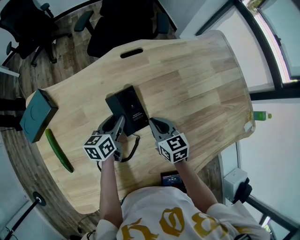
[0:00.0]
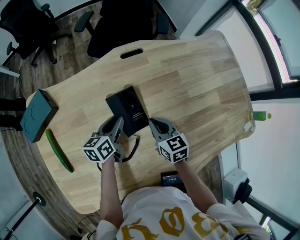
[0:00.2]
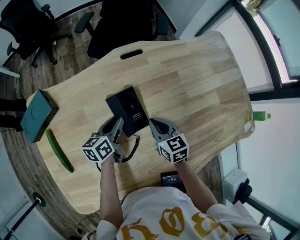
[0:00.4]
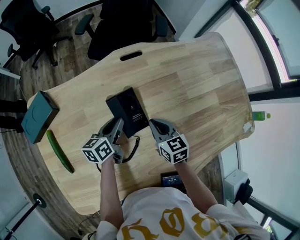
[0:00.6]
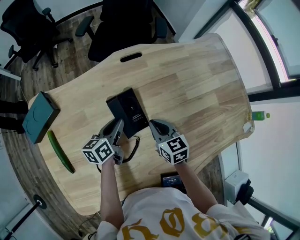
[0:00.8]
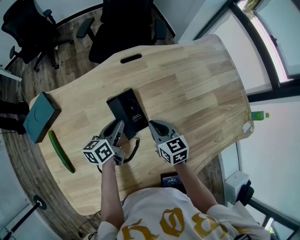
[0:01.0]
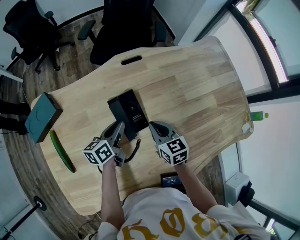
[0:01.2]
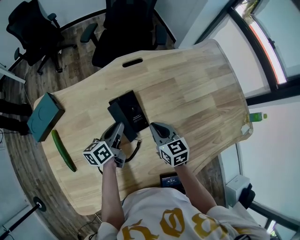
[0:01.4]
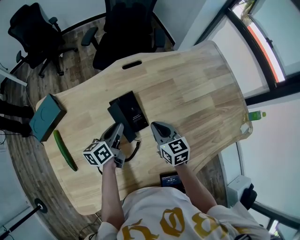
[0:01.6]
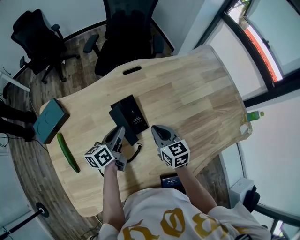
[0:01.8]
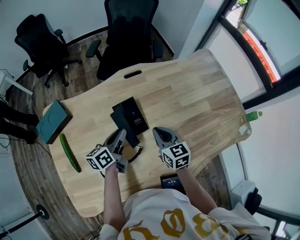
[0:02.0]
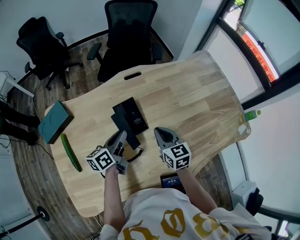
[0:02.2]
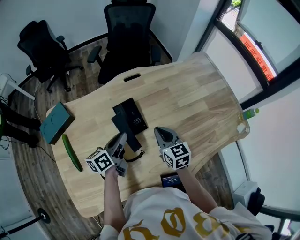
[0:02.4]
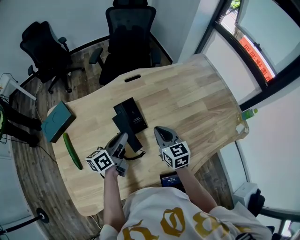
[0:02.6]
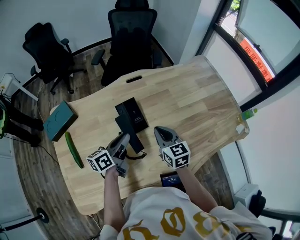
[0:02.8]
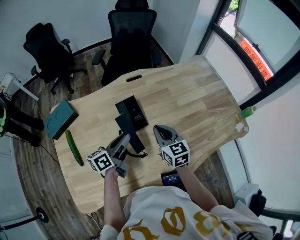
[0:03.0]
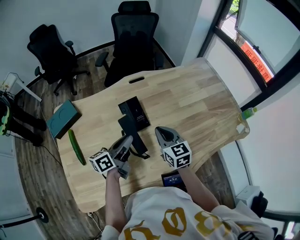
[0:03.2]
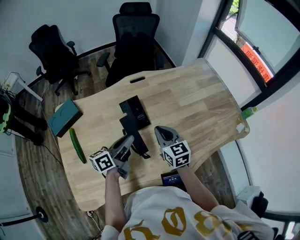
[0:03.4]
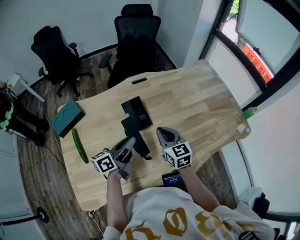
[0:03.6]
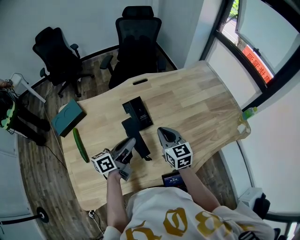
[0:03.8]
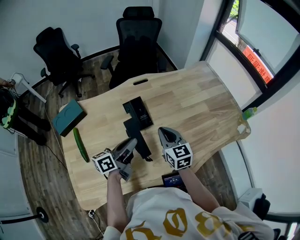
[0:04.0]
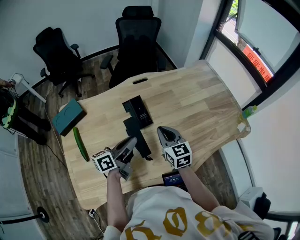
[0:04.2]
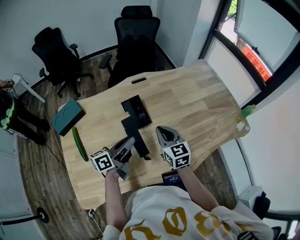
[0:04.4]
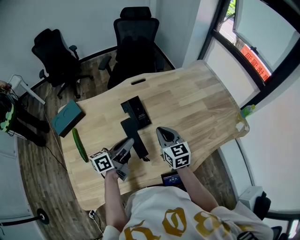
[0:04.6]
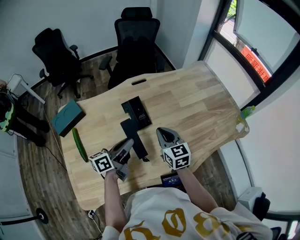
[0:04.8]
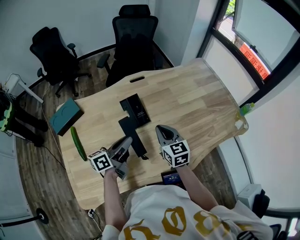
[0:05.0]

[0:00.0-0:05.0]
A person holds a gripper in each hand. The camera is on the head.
0:00.0 to 0:01.6: The left gripper moves some 5 cm.
0:01.6 to 0:03.4: The left gripper heads backward and upward, covering about 15 cm, and changes its angle by roughly 20 degrees. Meanwhile the right gripper travels upward and backward by roughly 10 cm.
0:03.4 to 0:05.0: The grippers stay close to where they were, moving slightly.

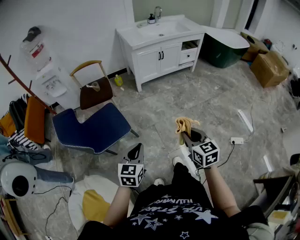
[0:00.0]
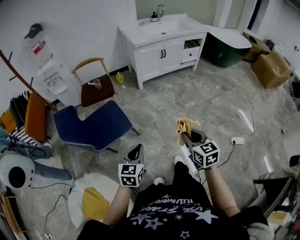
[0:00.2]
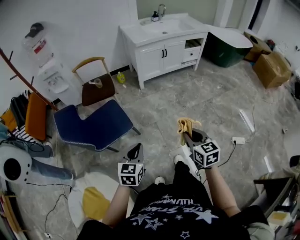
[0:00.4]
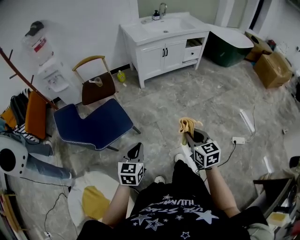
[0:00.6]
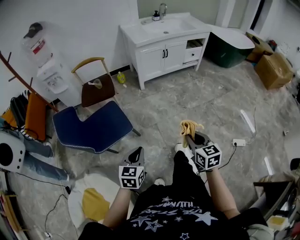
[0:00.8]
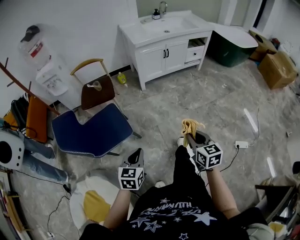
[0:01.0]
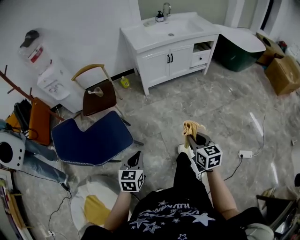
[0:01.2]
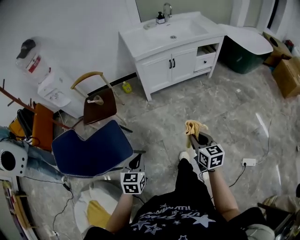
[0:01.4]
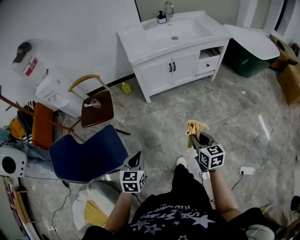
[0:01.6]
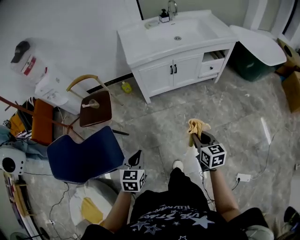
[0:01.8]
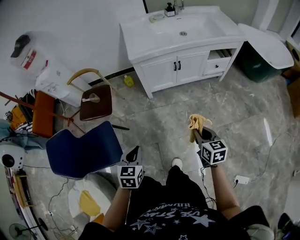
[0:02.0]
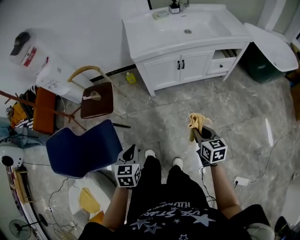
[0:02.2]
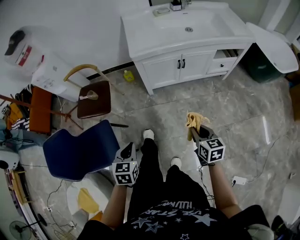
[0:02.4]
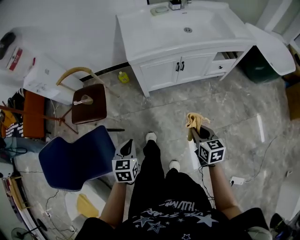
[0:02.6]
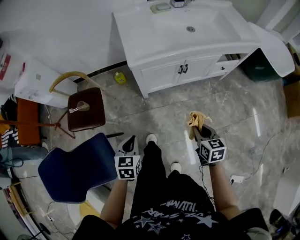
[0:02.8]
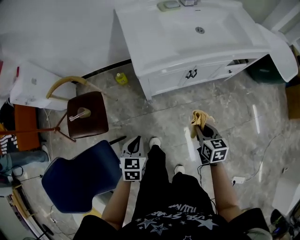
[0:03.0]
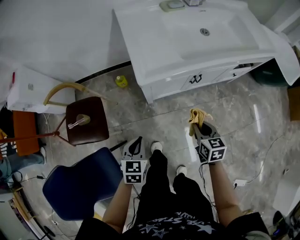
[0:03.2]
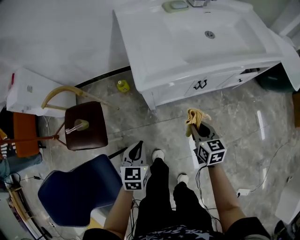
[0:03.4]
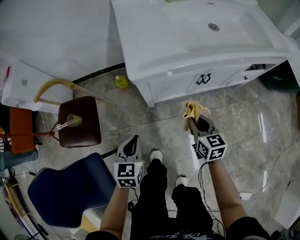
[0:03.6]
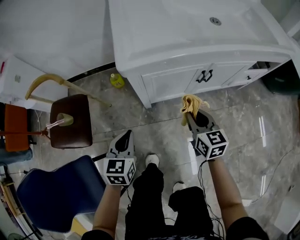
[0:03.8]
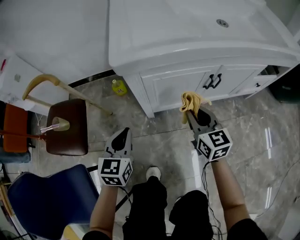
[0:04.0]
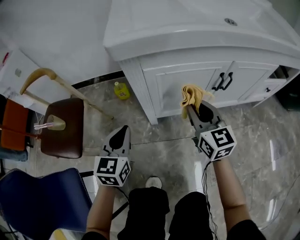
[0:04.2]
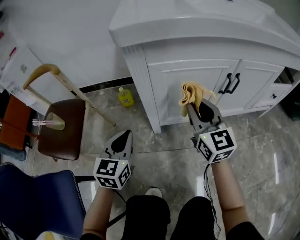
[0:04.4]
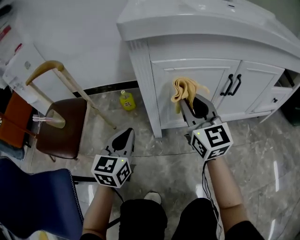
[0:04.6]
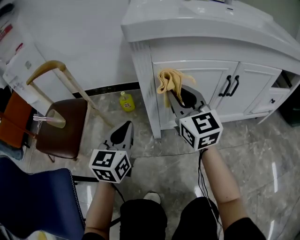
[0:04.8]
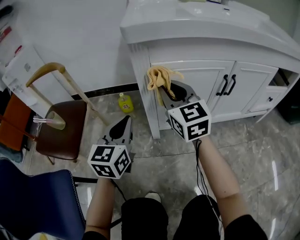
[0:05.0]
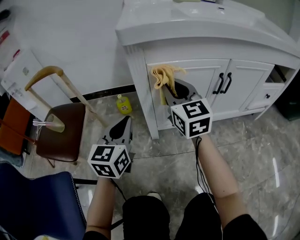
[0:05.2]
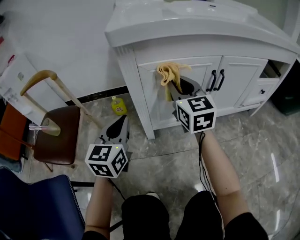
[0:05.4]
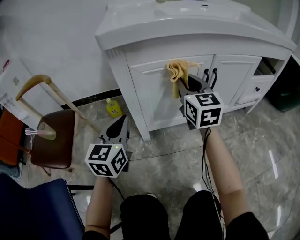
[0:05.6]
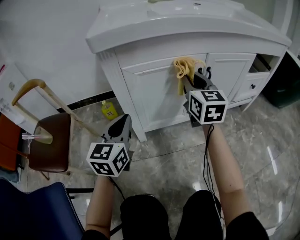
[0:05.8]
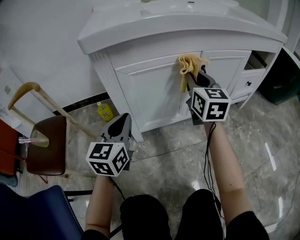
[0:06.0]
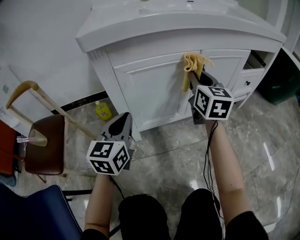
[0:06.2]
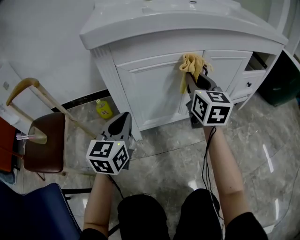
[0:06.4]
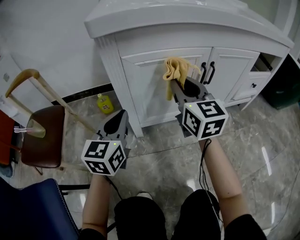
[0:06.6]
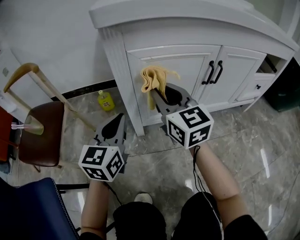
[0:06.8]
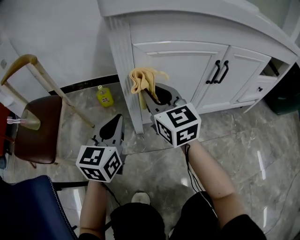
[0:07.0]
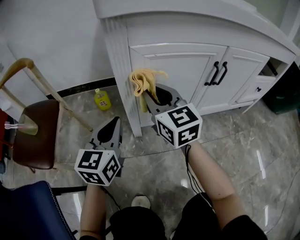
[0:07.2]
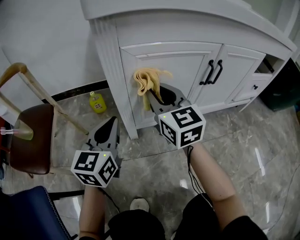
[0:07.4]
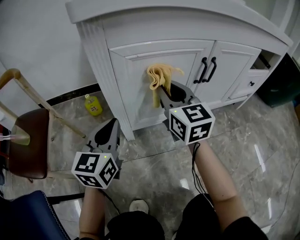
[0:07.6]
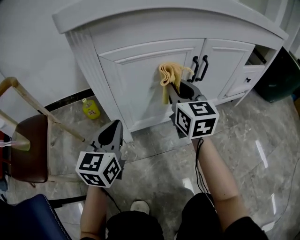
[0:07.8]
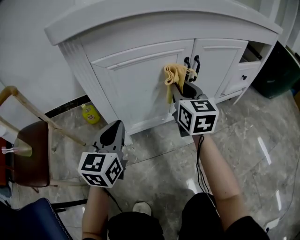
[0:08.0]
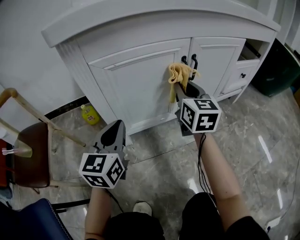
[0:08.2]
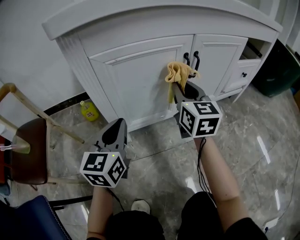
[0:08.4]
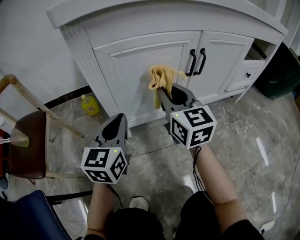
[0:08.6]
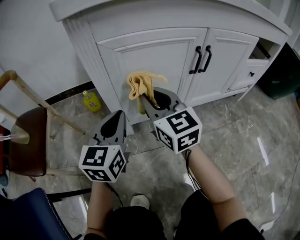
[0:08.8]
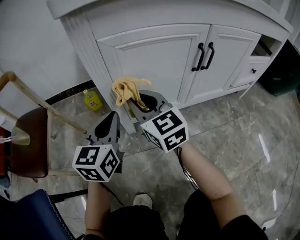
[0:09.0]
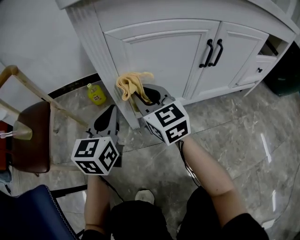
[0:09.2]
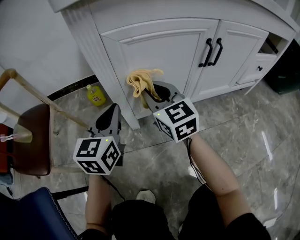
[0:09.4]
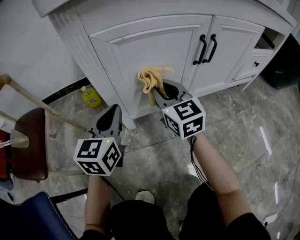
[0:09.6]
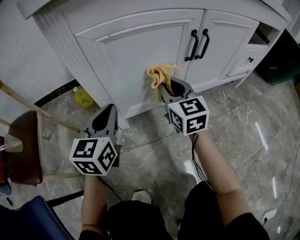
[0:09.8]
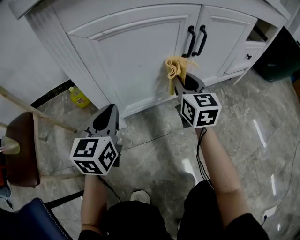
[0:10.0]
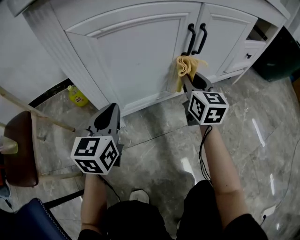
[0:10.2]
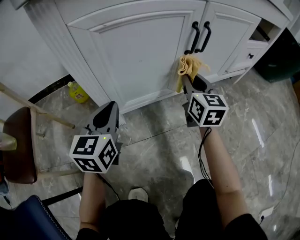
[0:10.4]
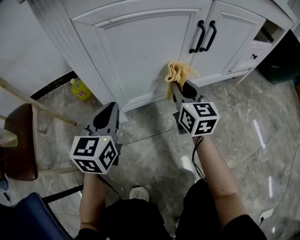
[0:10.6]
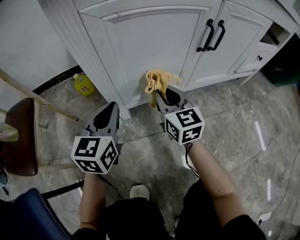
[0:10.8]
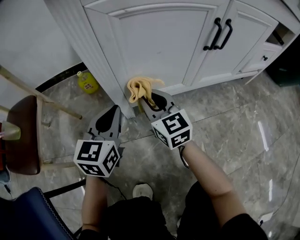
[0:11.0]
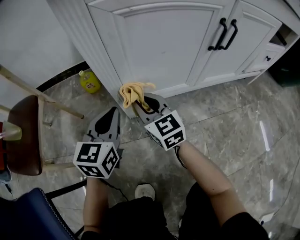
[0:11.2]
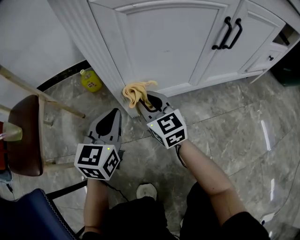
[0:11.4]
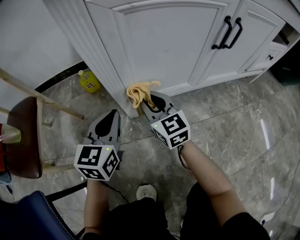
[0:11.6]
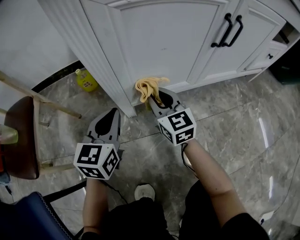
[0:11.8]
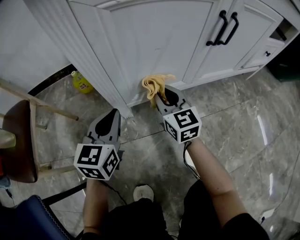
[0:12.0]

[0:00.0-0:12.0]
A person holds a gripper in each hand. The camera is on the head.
0:00.0 to 0:01.6: The right gripper moves forward and to the right, approximately 40 cm, while the left gripper shifts approximately 30 cm forward.
0:01.6 to 0:03.0: Both grippers move forward, approximately 40 cm.
0:03.0 to 0:04.4: The right gripper moves forward and downward, approximately 30 cm, and points its fingers approximately 40 degrees further upward. The left gripper is displaced downward and forward by roughly 30 cm, and changes its angle by roughly 20 degrees.
0:04.4 to 0:06.0: The left gripper moves to the right and upward, roughly 10 cm. The right gripper shifts roughly 15 cm to the right and forward, and rotates approximately 20 degrees.
0:06.0 to 0:07.6: The left gripper travels downward by roughly 5 cm. Meanwhile the right gripper heads to the left and downward, covering some 15 cm.
0:07.6 to 0:09.0: The right gripper heads to the left, covering about 10 cm.
0:09.0 to 0:10.4: The right gripper is displaced to the right by approximately 25 cm, and turns by approximately 30 degrees; the left gripper is displaced downward by approximately 5 cm.
0:10.4 to 0:12.0: The right gripper goes about 20 cm to the left and downward, and swivels some 20 degrees. The left gripper shifts about 5 cm downward.

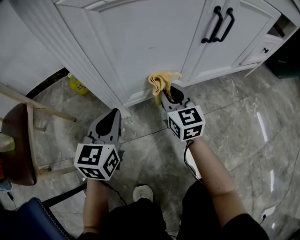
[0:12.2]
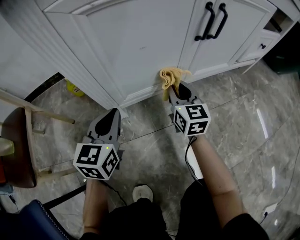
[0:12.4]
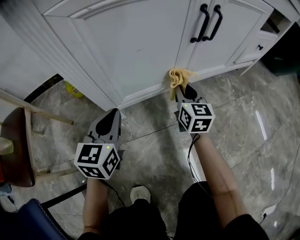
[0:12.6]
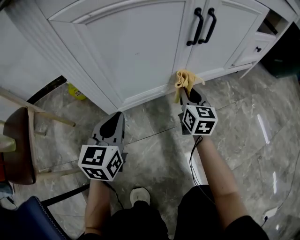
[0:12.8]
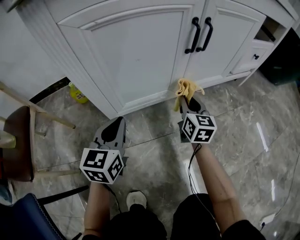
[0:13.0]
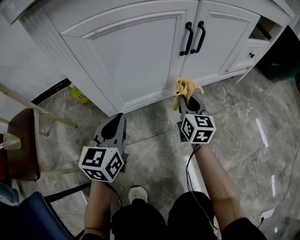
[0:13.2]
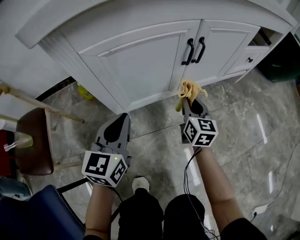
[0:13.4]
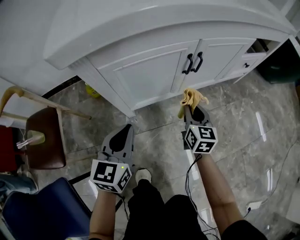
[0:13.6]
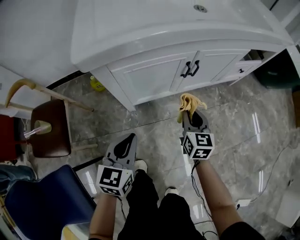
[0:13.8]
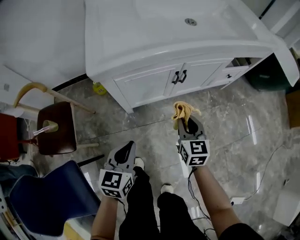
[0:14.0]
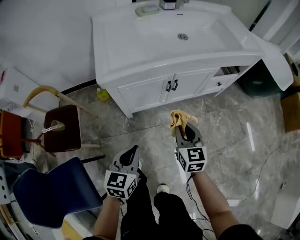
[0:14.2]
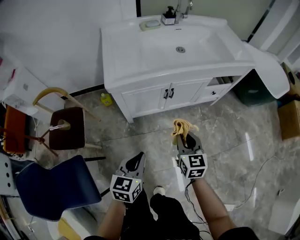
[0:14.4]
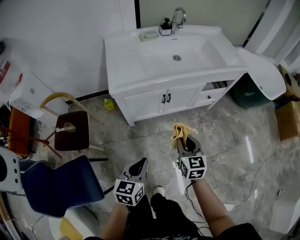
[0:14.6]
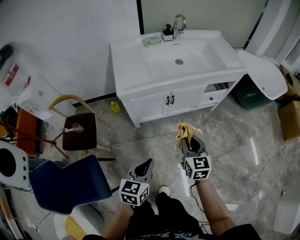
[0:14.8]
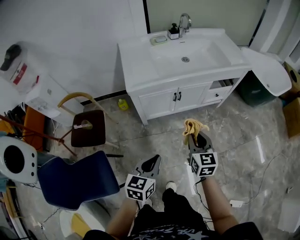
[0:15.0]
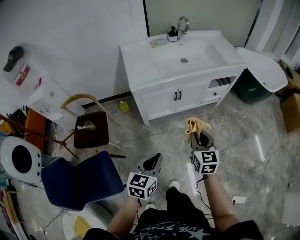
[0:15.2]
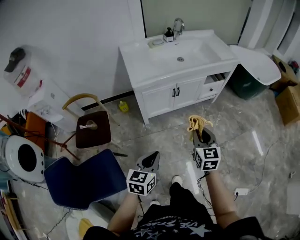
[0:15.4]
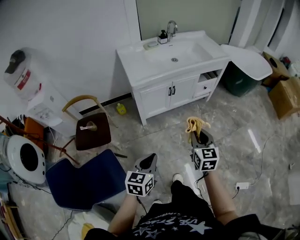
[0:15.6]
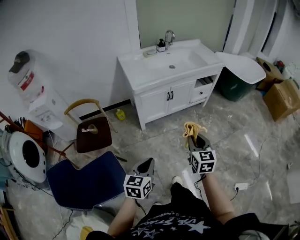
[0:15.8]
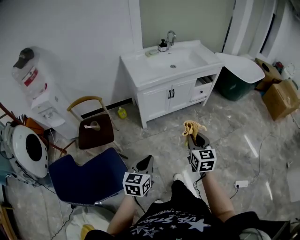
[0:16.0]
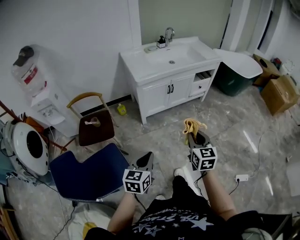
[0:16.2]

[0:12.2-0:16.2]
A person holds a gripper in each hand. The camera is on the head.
0:12.2 to 0:13.6: The right gripper heads upward, to the right and backward, covering roughly 20 cm, and changes its angle by about 20 degrees. The left gripper shifts some 20 cm upward.
0:13.6 to 0:14.8: Both grippers travel together upward and backward, some 40 cm.
0:14.8 to 0:16.2: The left gripper goes roughly 30 cm backward and to the left, while the right gripper moves backward, about 35 cm.

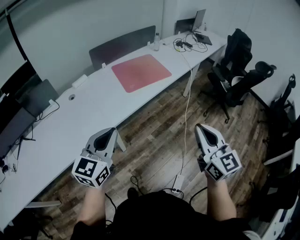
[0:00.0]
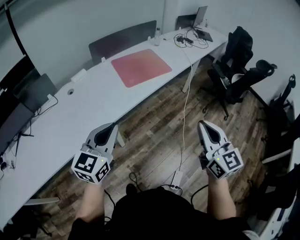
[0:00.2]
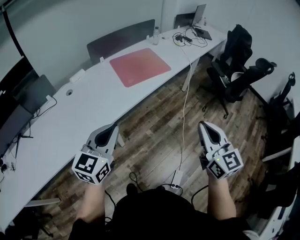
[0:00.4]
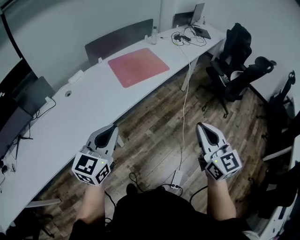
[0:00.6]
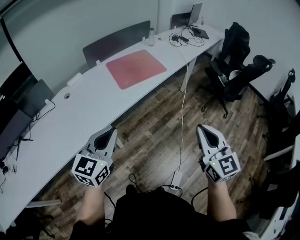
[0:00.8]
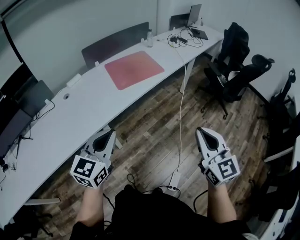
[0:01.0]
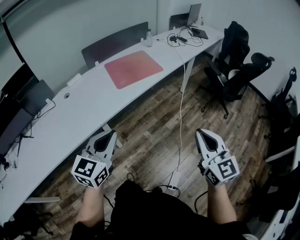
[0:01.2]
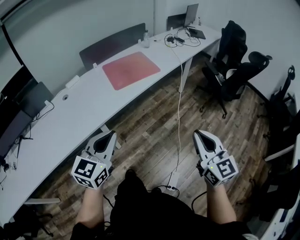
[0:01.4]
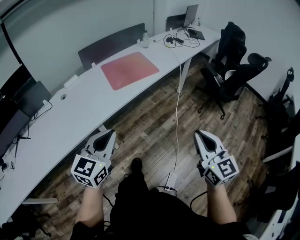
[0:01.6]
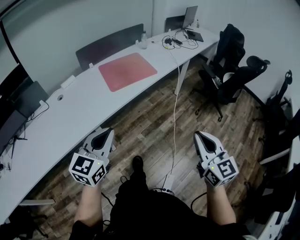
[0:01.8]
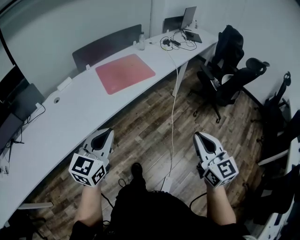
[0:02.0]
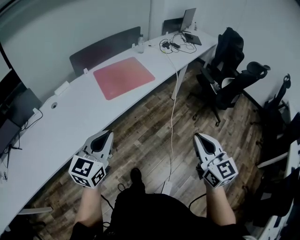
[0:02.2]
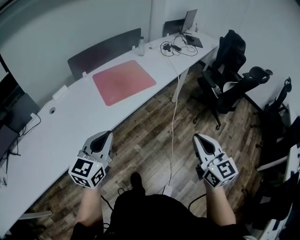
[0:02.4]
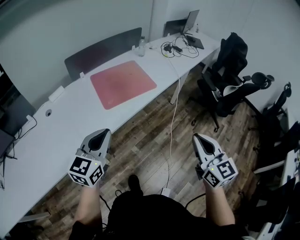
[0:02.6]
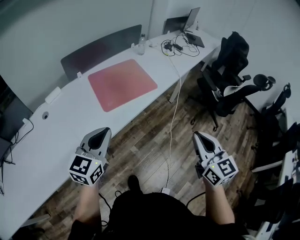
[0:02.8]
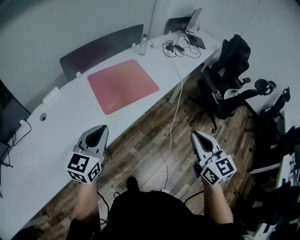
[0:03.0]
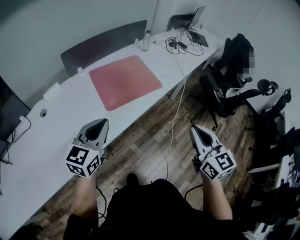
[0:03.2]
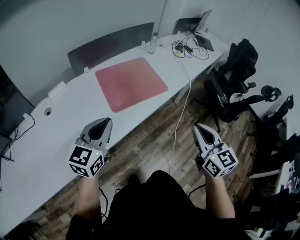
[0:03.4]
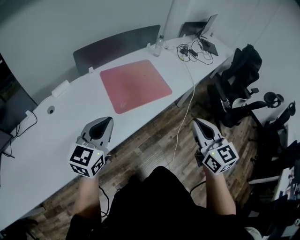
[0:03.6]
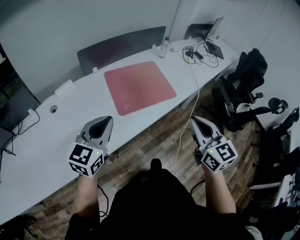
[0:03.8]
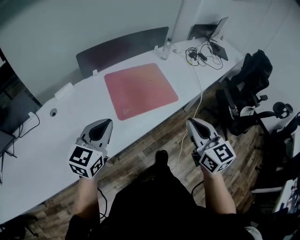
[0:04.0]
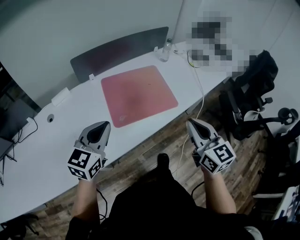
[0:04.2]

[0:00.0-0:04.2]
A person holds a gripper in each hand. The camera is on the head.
0:00.0 to 0:01.4: Both grippers move to the right, some 10 cm.
0:01.4 to 0:02.8: Both grippers move forward, roughly 25 cm.
0:02.8 to 0:04.2: The two grippers go about 20 cm forward.
